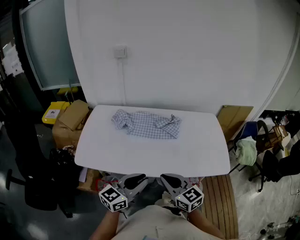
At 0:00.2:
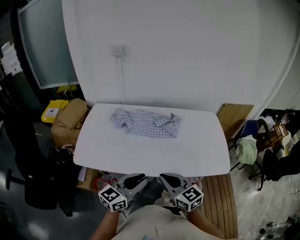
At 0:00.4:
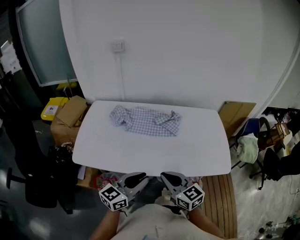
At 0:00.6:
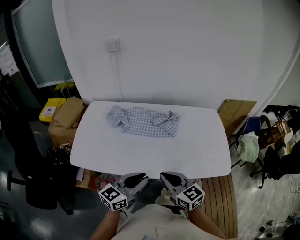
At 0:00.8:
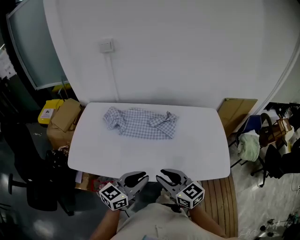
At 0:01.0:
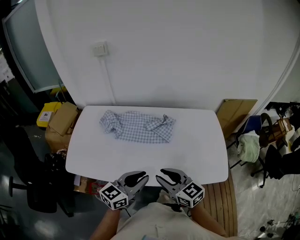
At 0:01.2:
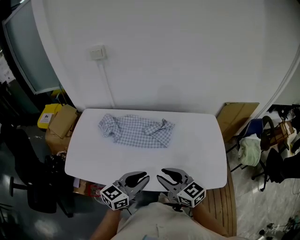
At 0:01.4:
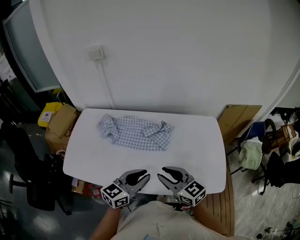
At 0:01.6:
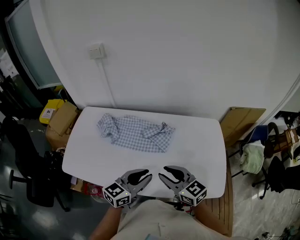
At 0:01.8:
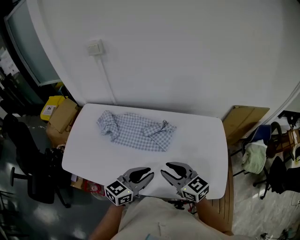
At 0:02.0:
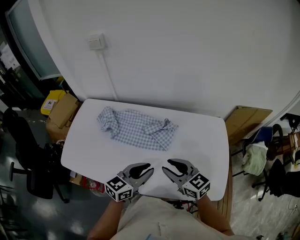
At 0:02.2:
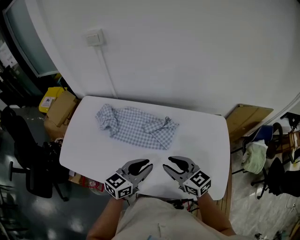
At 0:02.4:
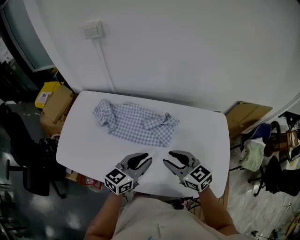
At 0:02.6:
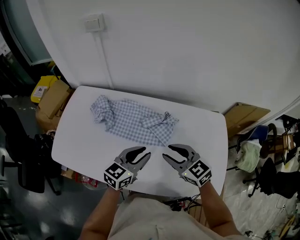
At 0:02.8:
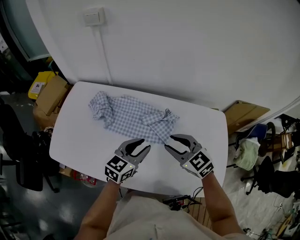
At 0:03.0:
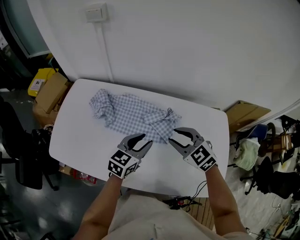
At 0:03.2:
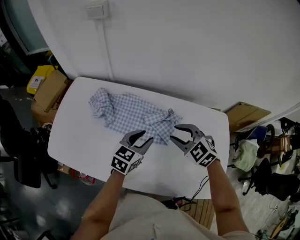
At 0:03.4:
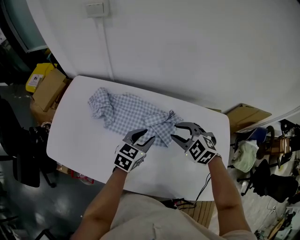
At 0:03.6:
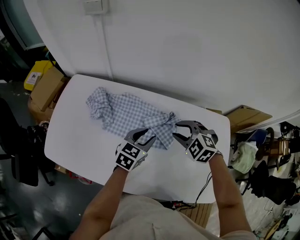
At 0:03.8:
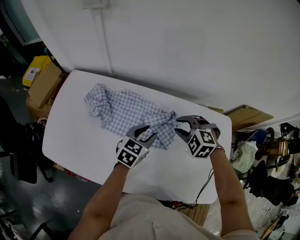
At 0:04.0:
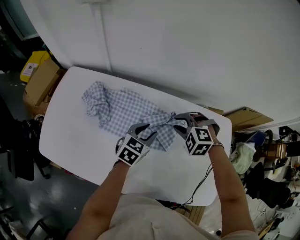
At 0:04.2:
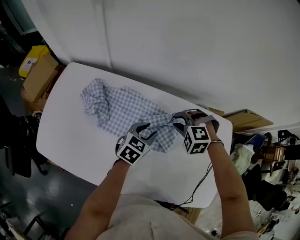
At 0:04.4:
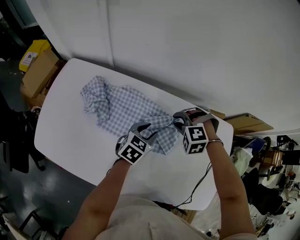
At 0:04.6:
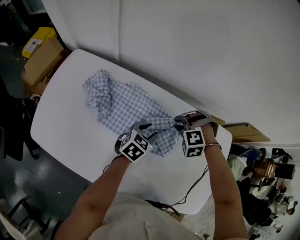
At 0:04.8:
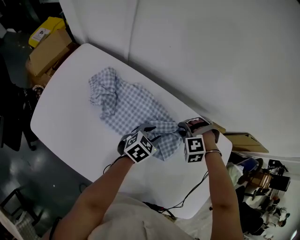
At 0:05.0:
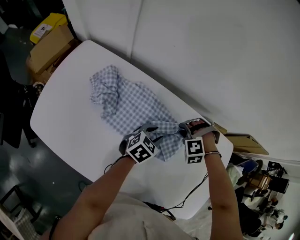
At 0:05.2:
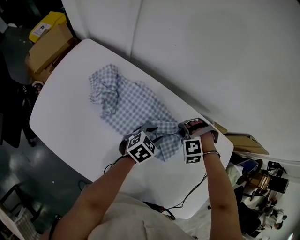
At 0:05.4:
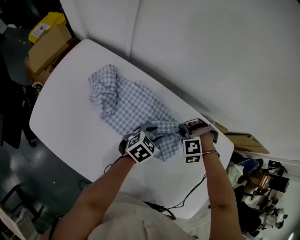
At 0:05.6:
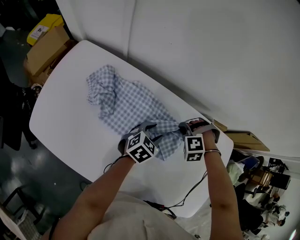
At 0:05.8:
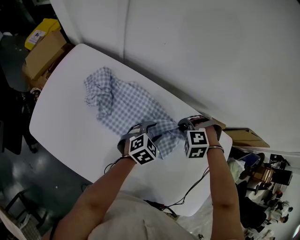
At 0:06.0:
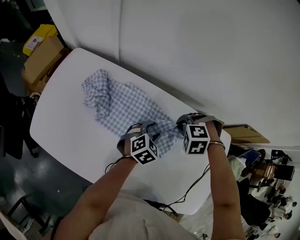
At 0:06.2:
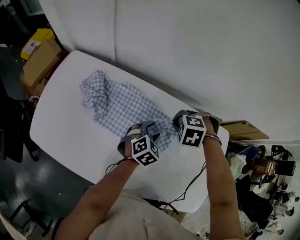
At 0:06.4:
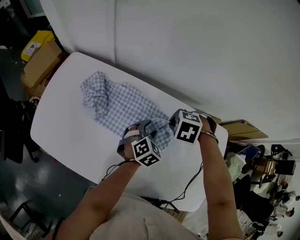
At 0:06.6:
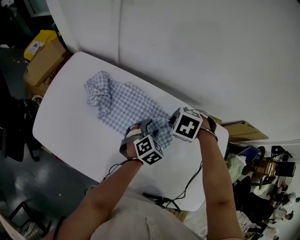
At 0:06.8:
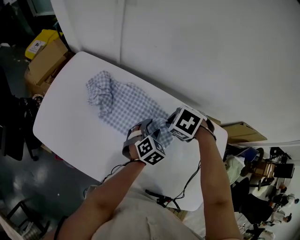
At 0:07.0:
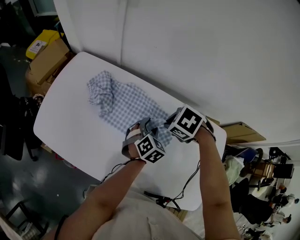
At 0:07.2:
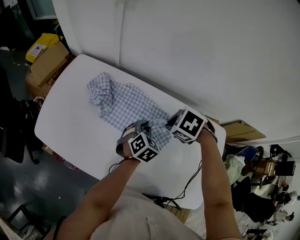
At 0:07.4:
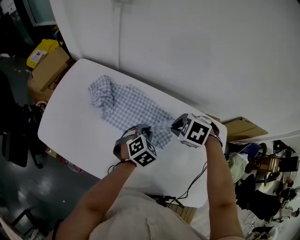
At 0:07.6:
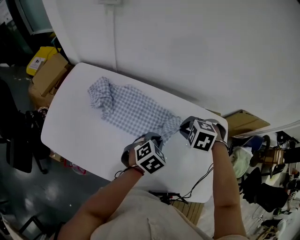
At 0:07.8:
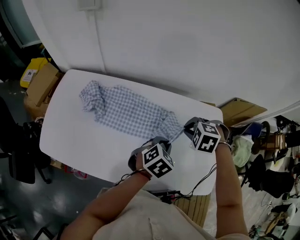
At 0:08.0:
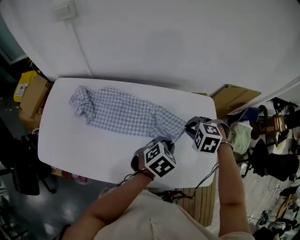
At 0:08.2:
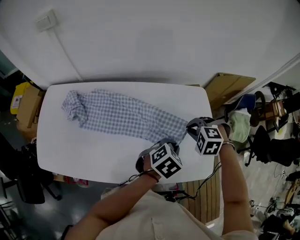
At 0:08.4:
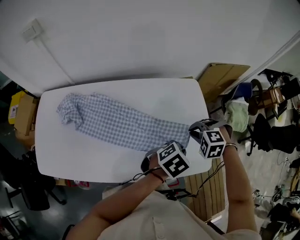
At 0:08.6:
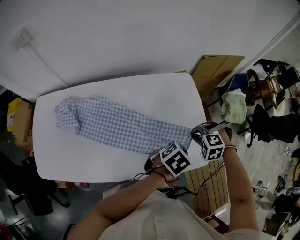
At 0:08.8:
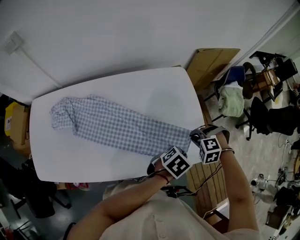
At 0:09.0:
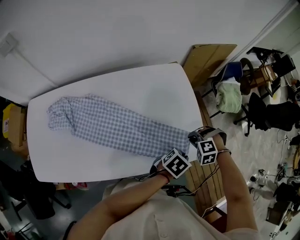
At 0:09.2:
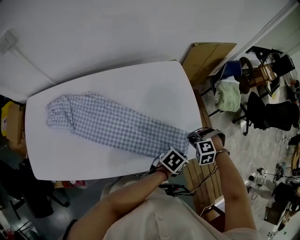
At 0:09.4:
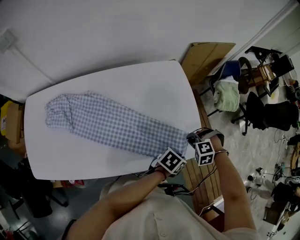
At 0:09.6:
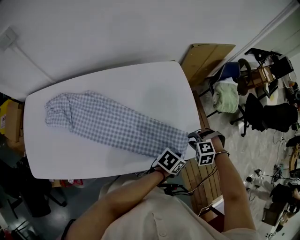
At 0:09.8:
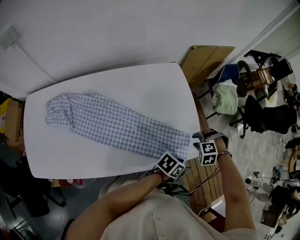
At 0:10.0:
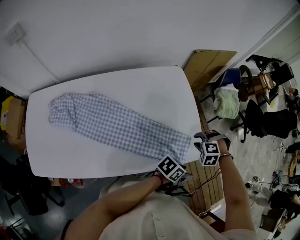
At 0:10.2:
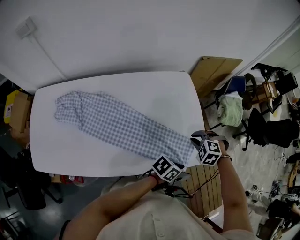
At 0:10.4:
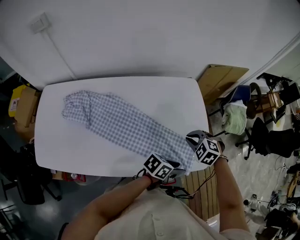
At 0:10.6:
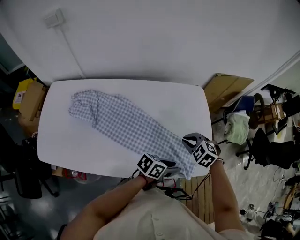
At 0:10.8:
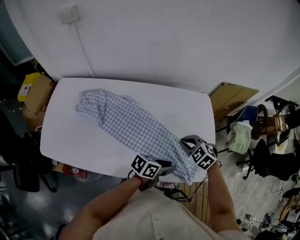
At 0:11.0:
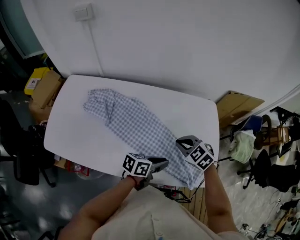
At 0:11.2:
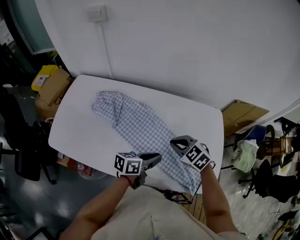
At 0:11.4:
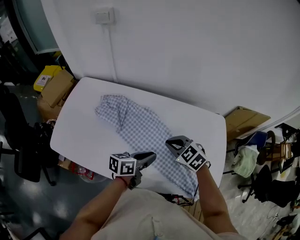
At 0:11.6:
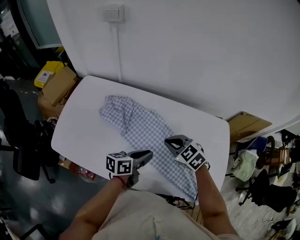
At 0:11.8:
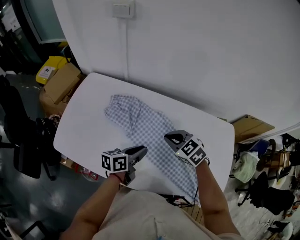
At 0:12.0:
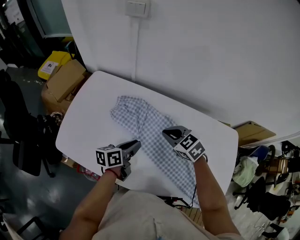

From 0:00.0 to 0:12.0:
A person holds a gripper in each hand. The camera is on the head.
From 0:00.0 to 0:01.6: Both grippers move forward and to the right, approximately 20 cm. The right gripper opens up.
From 0:01.6 to 0:03.0: The left gripper goes about 20 cm forward and downward; the right gripper moves forward, about 15 cm, and swivels about 30 degrees.
From 0:03.0 to 0:04.4: The two grippers go some 15 cm forward and downward. The right gripper twists approximately 50 degrees counterclockwise, seen from behind.
From 0:04.4 to 0:06.0: The right gripper closes up.
From 0:06.0 to 0:07.6: The right gripper changes place by some 10 cm, and swivels some 20 degrees; the left gripper ends up some 15 cm from where it was, and closes up.
From 0:07.6 to 0:09.0: The right gripper changes place by about 40 cm; the left gripper shifts by some 40 cm, and turns by roughly 40 degrees.
From 0:09.0 to 0:10.4: The left gripper moves approximately 5 cm, changes its angle by some 30 degrees, and opens. Meanwhile the right gripper shifts by roughly 10 cm, swivels roughly 30 degrees, and opens, then closes again.
From 0:10.4 to 0:12.0: The two grippers travel together, about 50 cm. The right gripper changes its angle by approximately 30 degrees. The left gripper turns by approximately 70 degrees, and closes up.

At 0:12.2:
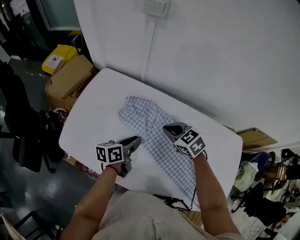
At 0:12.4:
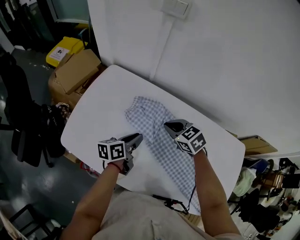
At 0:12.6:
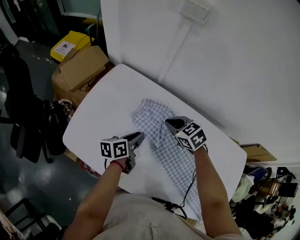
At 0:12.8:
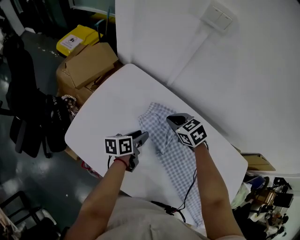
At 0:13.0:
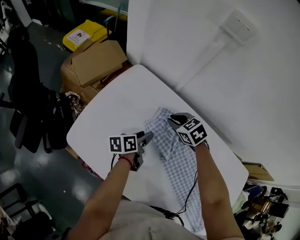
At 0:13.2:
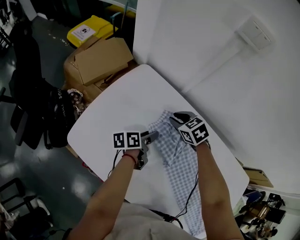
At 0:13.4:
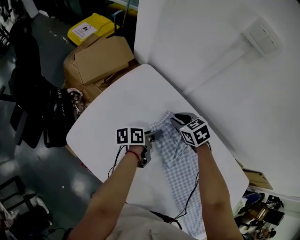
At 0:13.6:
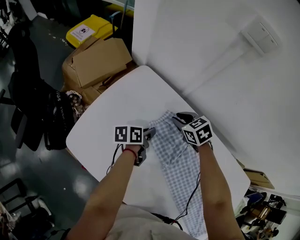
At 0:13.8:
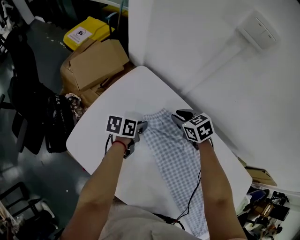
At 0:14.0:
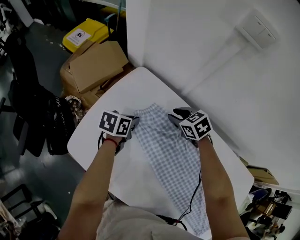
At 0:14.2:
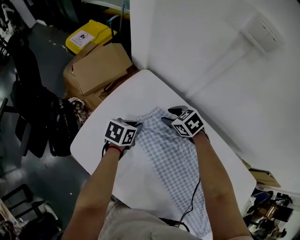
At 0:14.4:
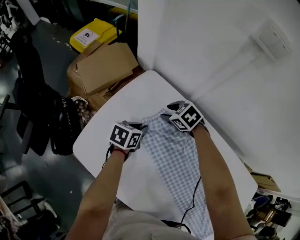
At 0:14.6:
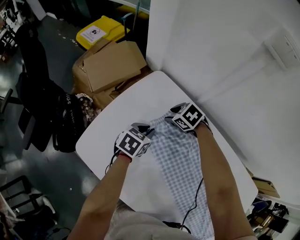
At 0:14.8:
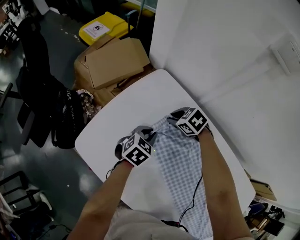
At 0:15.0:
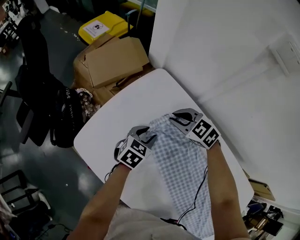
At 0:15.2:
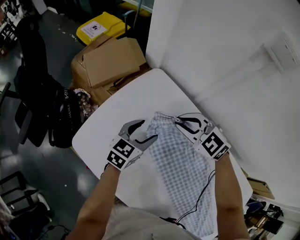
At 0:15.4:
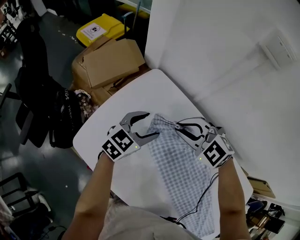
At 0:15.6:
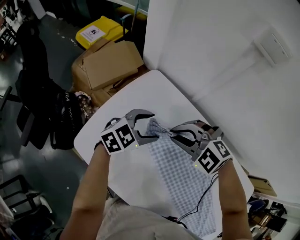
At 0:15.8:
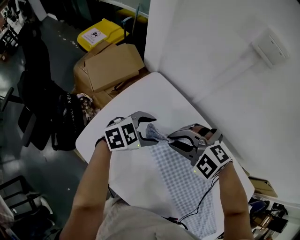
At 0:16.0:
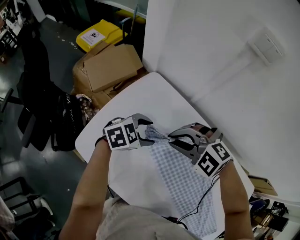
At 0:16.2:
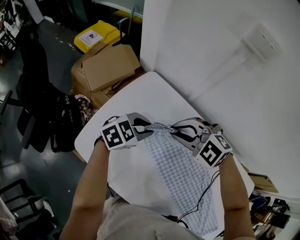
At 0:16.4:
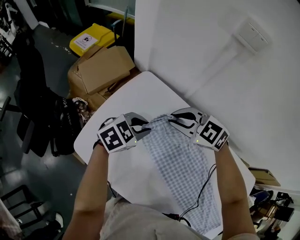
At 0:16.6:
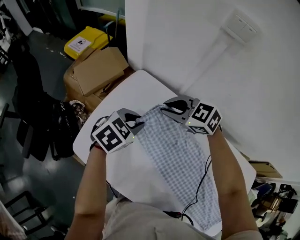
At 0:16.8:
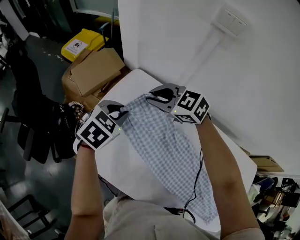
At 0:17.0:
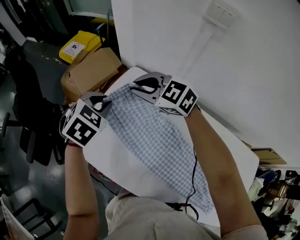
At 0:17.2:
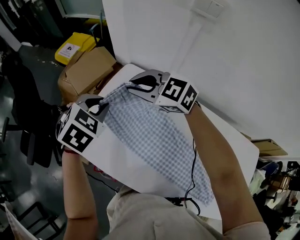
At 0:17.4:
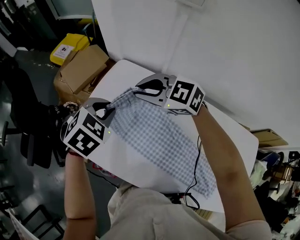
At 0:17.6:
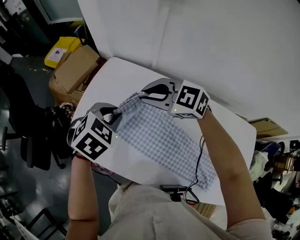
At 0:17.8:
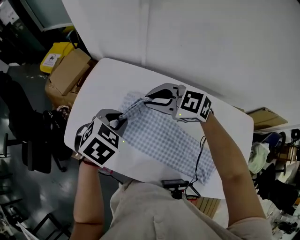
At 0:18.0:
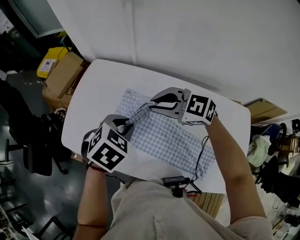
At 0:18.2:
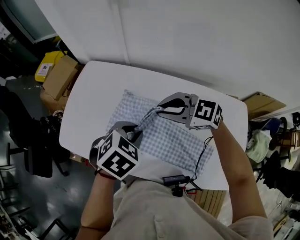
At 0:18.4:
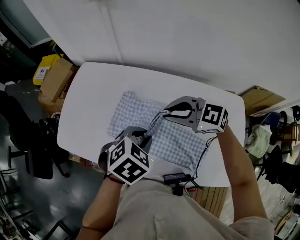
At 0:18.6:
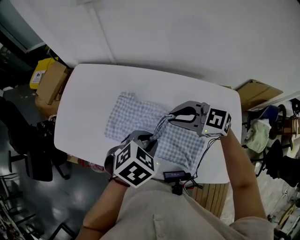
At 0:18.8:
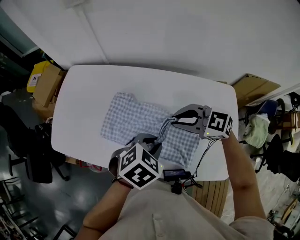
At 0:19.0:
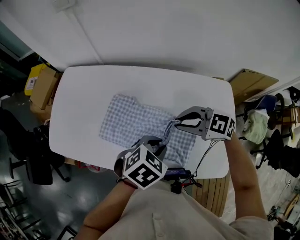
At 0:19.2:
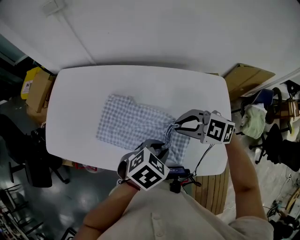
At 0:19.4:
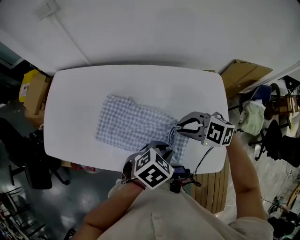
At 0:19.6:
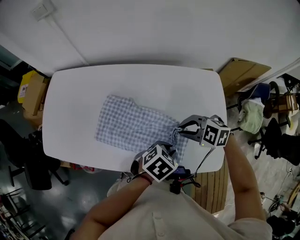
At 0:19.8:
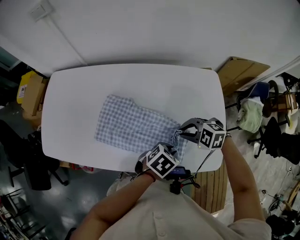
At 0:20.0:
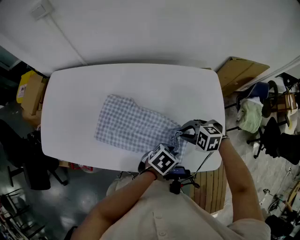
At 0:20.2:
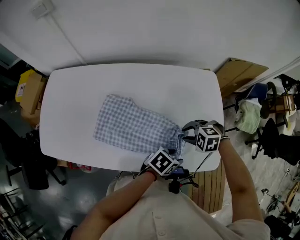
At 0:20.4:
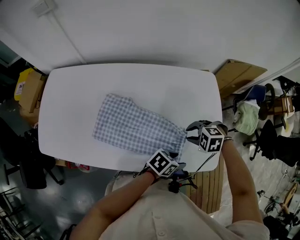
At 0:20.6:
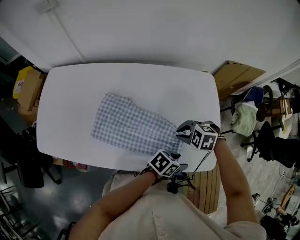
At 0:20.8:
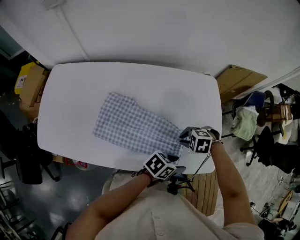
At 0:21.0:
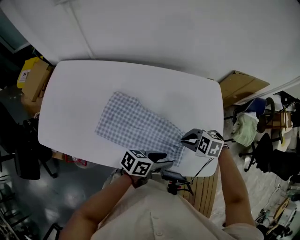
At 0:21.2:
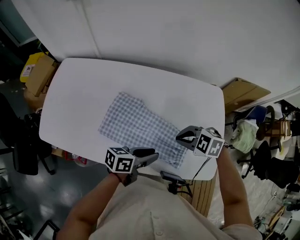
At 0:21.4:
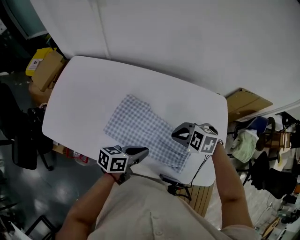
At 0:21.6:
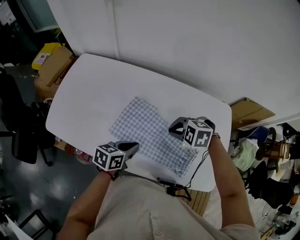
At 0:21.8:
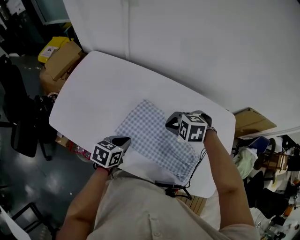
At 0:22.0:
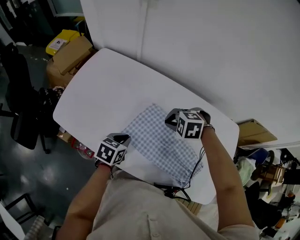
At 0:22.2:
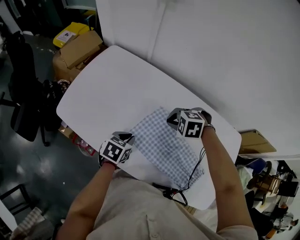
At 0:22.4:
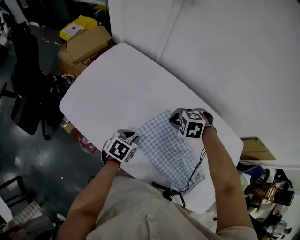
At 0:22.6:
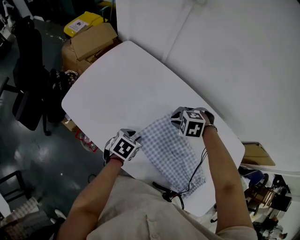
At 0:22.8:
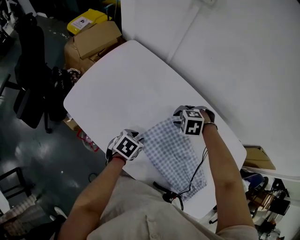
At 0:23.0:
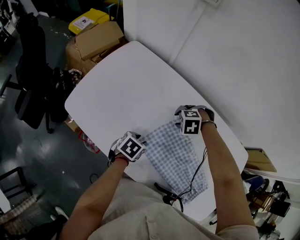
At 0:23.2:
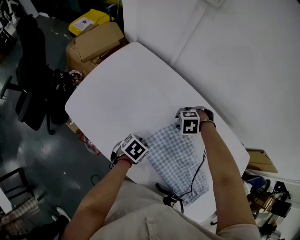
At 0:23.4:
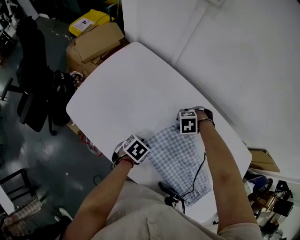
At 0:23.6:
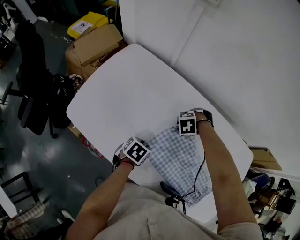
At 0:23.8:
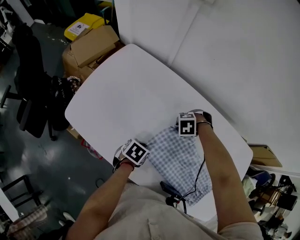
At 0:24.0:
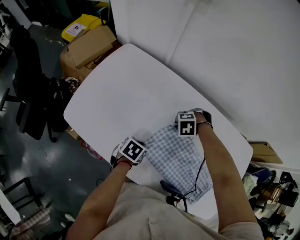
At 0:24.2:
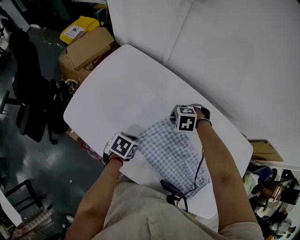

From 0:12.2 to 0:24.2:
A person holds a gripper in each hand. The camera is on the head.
From 0:12.2 to 0:13.8: The two grippers go about 25 cm forward, to the left and downward. The left gripper opens and closes again. Meanwhile the right gripper opens up.
From 0:13.8 to 0:15.2: The left gripper travels upward by about 5 cm, rotates about 40 degrees, and opens up; the right gripper ends up some 10 cm from where it was, rotates about 40 degrees, and opens, then closes once more.
From 0:15.2 to 0:16.6: The left gripper goes some 10 cm upward, rotates about 30 degrees, and closes up, while the right gripper shifts some 5 cm upward.
From 0:16.6 to 0:18.2: The right gripper changes place by approximately 30 cm; the left gripper ends up some 30 cm from where it was.
From 0:18.2 to 0:19.8: The right gripper shifts by roughly 35 cm, and changes its angle by some 30 degrees; the left gripper moves roughly 40 cm, and turns by roughly 30 degrees.
From 0:19.8 to 0:21.2: The right gripper shifts by roughly 5 cm, while the left gripper shifts by roughly 10 cm, and points its fingers some 40 degrees further upward.
From 0:21.2 to 0:22.6: The left gripper moves about 30 cm, and points its fingers approximately 40 degrees further downward. The right gripper shifts by approximately 30 cm, and turns by approximately 40 degrees.
From 0:22.6 to 0:24.2: The right gripper goes approximately 5 cm downward, and opens, then closes once more. Meanwhile the left gripper ends up about 5 cm from where it was.
